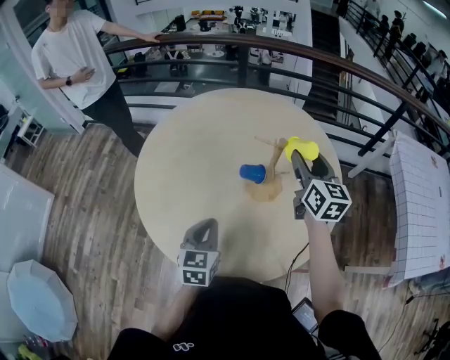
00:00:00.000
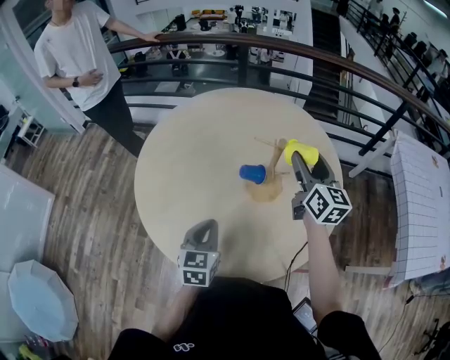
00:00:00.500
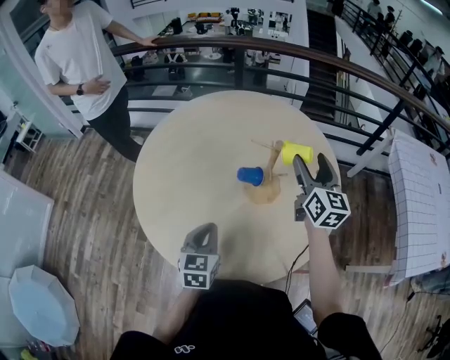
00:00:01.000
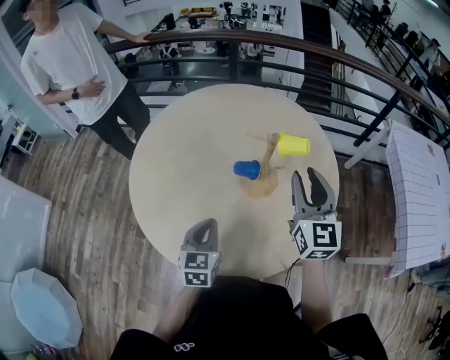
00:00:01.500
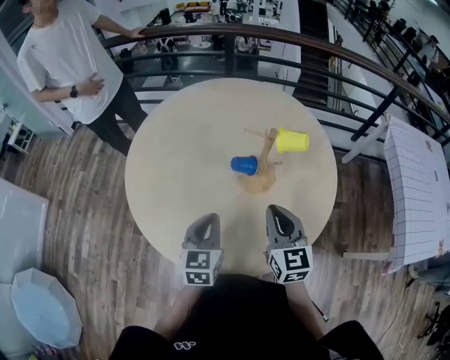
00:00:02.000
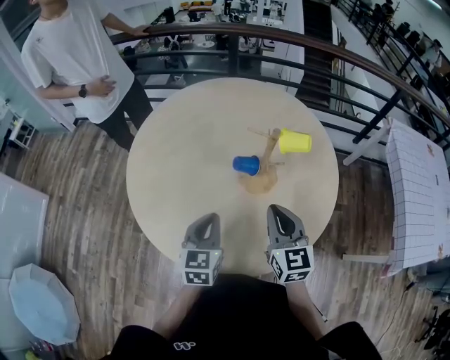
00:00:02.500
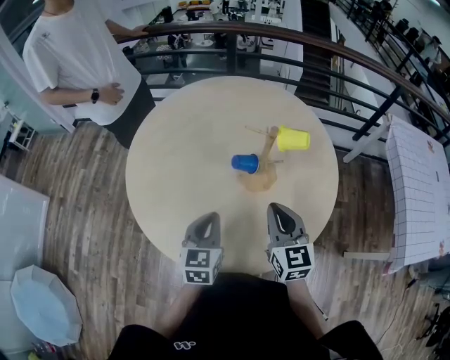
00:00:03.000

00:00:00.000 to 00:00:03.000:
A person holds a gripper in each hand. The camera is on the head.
00:00:00.000 to 00:00:01.500: The right gripper is displaced backward by approximately 10 cm.
00:00:01.500 to 00:00:03.000: The right gripper heads downward, backward and to the left, covering about 15 cm, and closes its fingers.

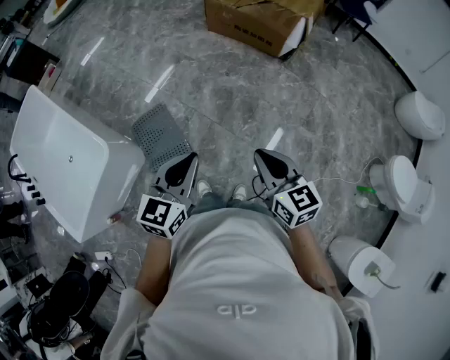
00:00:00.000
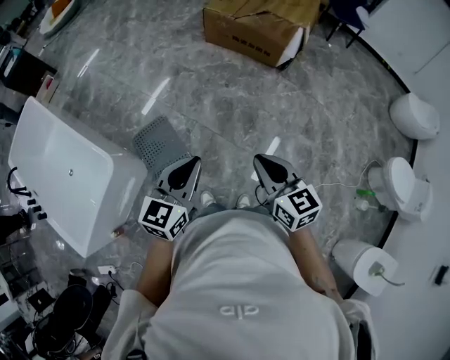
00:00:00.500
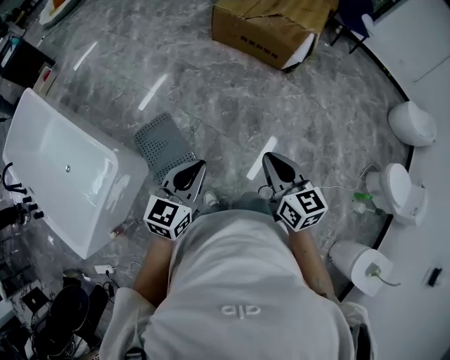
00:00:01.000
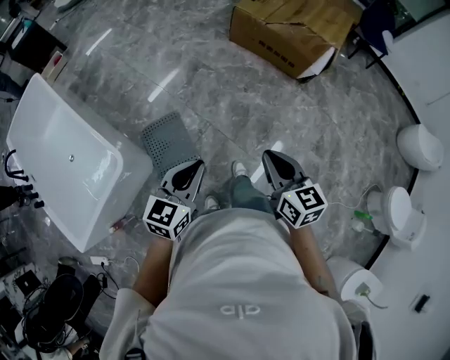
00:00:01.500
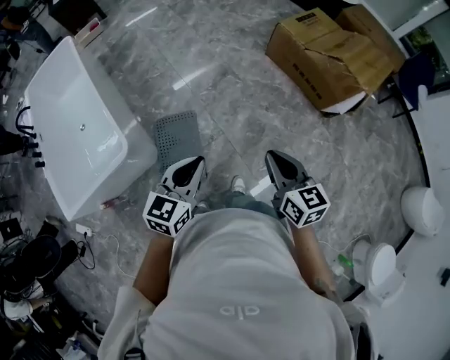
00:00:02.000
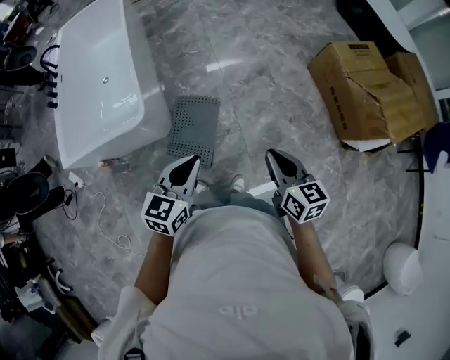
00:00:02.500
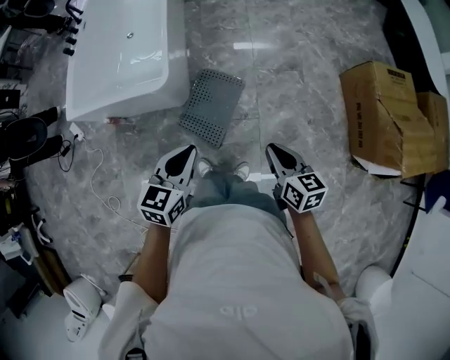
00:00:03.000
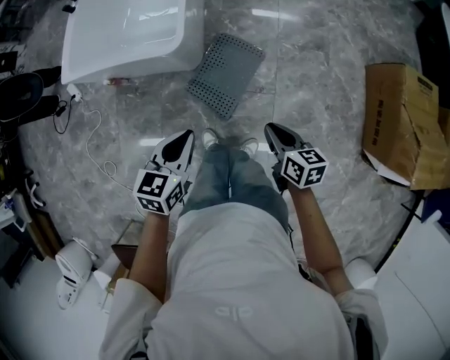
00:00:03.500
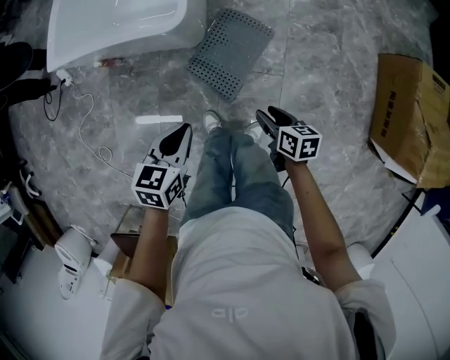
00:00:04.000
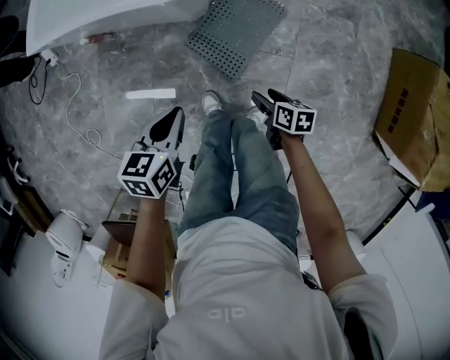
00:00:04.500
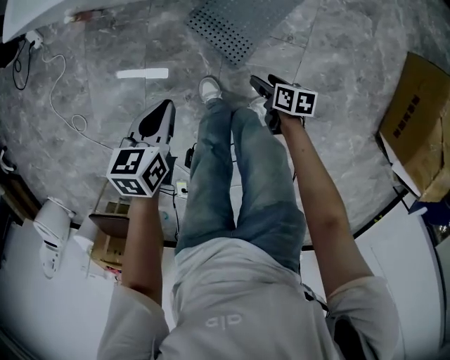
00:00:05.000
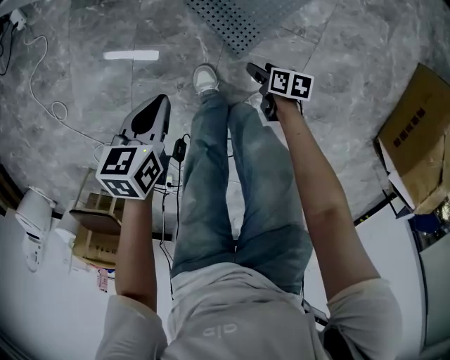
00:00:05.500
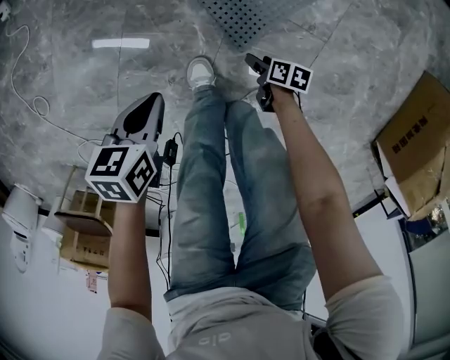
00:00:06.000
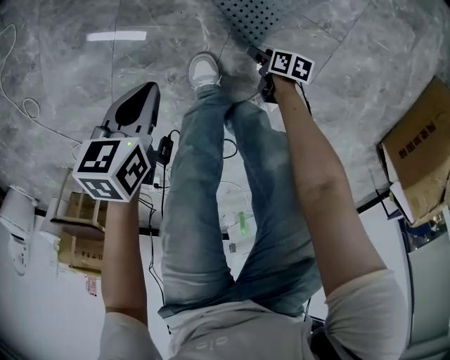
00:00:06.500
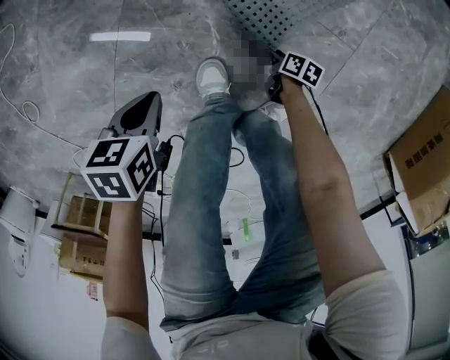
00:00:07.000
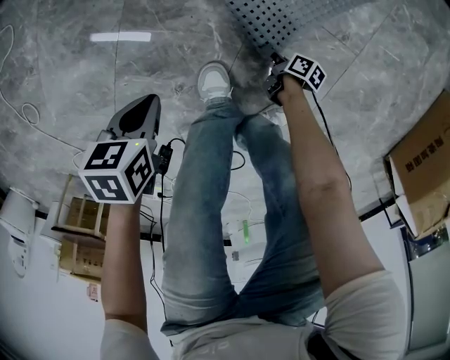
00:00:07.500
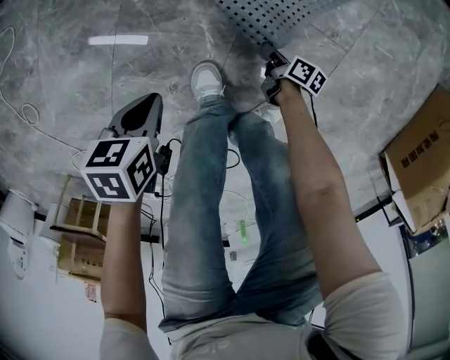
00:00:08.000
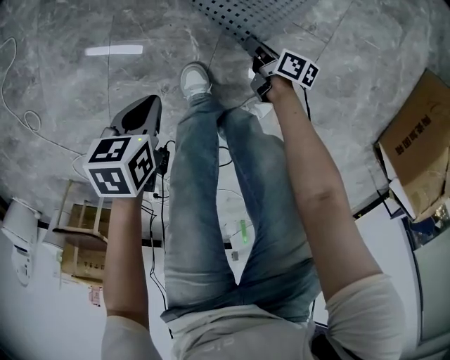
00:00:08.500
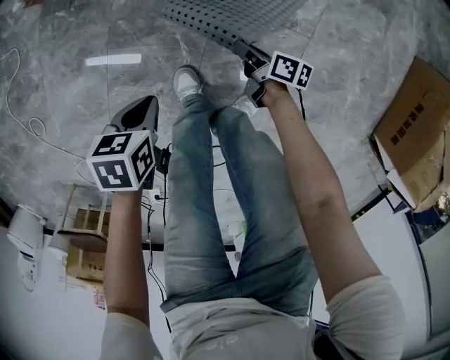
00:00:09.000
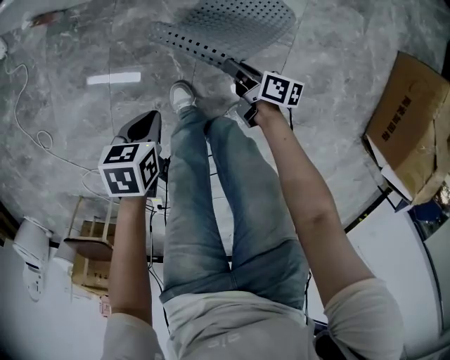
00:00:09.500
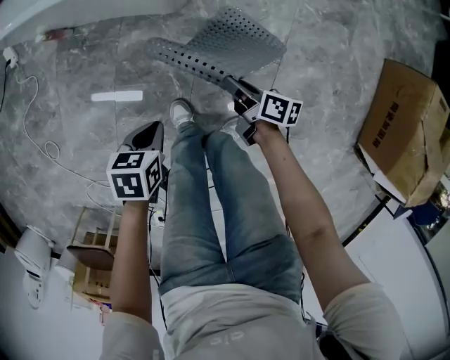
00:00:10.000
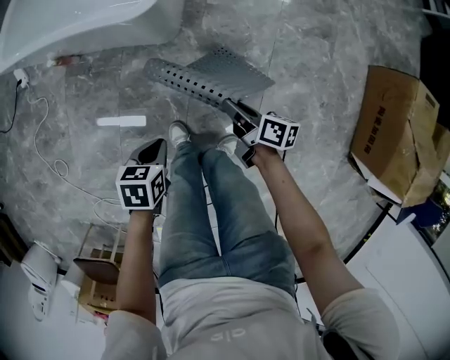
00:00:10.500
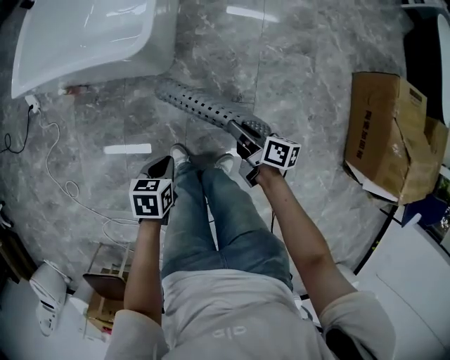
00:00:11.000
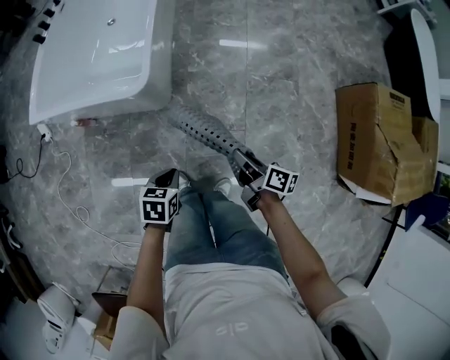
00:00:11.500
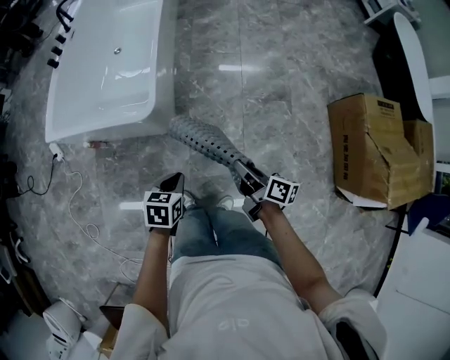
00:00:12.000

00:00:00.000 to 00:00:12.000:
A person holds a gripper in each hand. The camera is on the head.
00:00:00.000 to 00:00:02.000: The two grippers go some 30 cm forward and to the left.
00:00:02.000 to 00:00:04.000: The left gripper changes place by some 40 cm, and rotates roughly 50 degrees; the right gripper is displaced downward by about 40 cm, changes its angle by roughly 50 degrees, and opens.
00:00:04.000 to 00:00:06.000: Both grippers travel together downward, about 50 cm. The left gripper swivels about 30 degrees; the right gripper rotates approximately 20 degrees.
00:00:06.000 to 00:00:08.000: Both grippers travel together downward, about 10 cm. The right gripper rotates about 20 degrees, and closes.
00:00:08.000 to 00:00:10.000: The left gripper goes about 25 cm upward and to the right. The right gripper moves upward, approximately 35 cm.
00:00:10.000 to 00:00:12.000: The left gripper moves upward and to the right, some 35 cm, and swivels about 20 degrees. Meanwhile the right gripper shifts roughly 40 cm upward, and changes its angle by roughly 20 degrees.

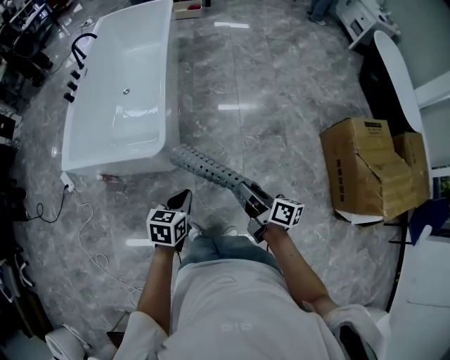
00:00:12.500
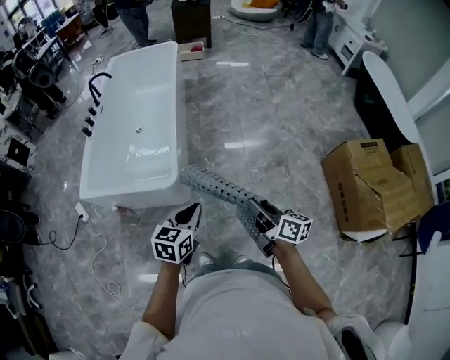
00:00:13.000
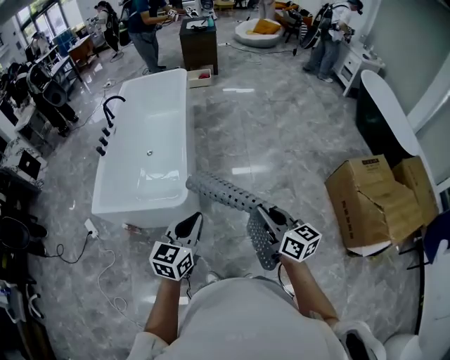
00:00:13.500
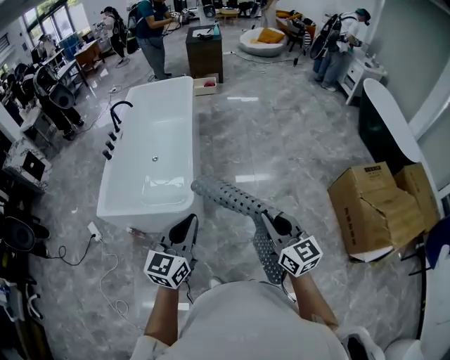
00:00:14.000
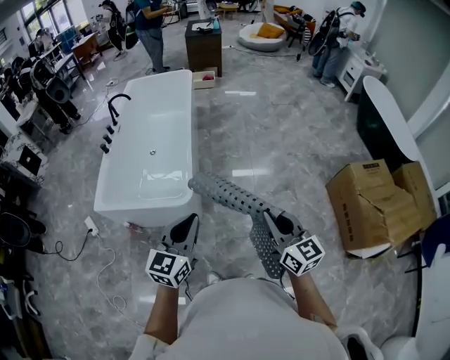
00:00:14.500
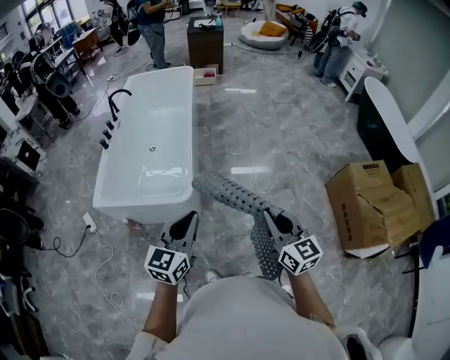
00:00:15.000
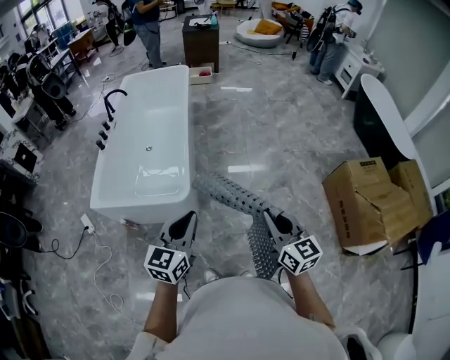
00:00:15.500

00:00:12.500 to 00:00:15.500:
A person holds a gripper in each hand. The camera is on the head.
00:00:12.500 to 00:00:14.000: Both grippers travel together upward, some 25 cm. The left gripper points its fingers approximately 40 degrees further upward, while the right gripper twists about 50 degrees counterclockwise, seen from behind.
00:00:14.000 to 00:00:15.500: The grippers stay close to where they were, moving slightly.

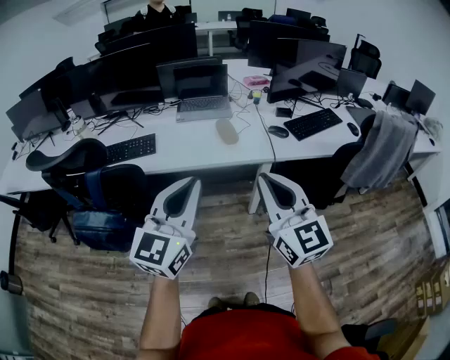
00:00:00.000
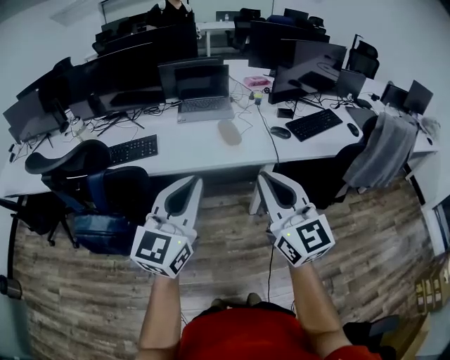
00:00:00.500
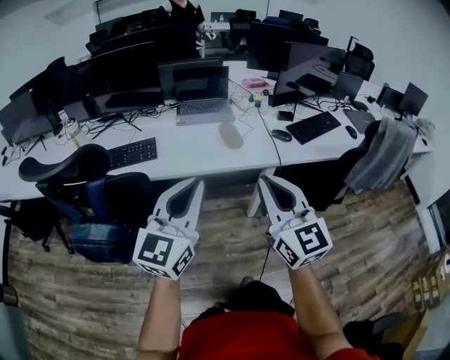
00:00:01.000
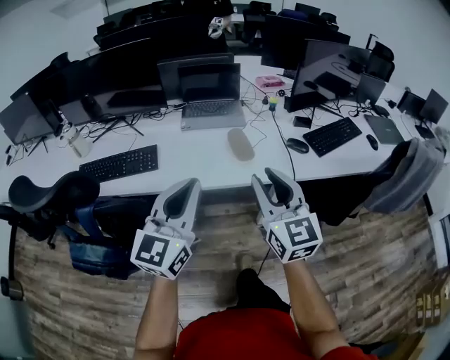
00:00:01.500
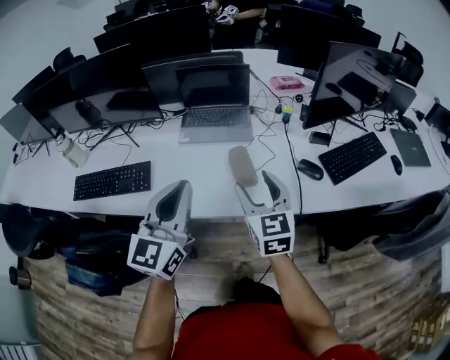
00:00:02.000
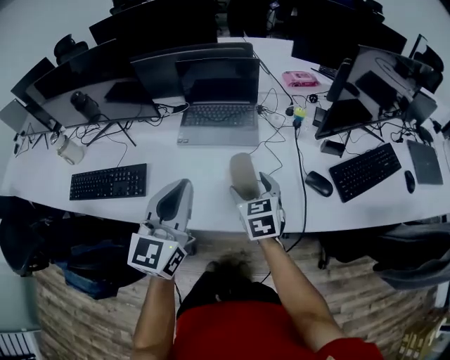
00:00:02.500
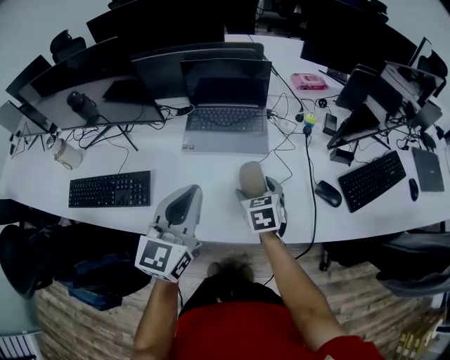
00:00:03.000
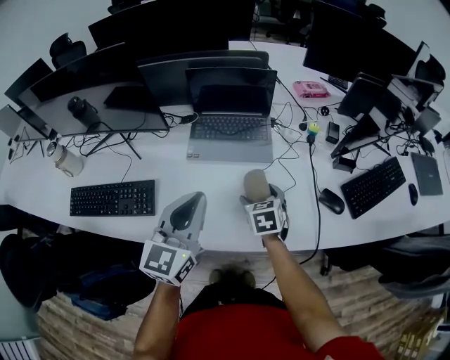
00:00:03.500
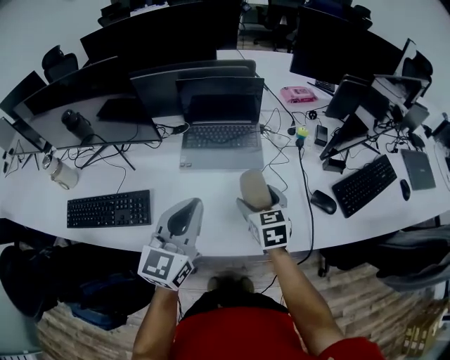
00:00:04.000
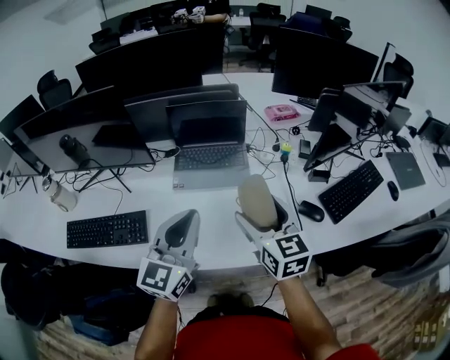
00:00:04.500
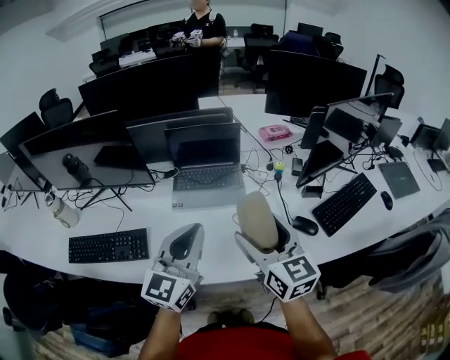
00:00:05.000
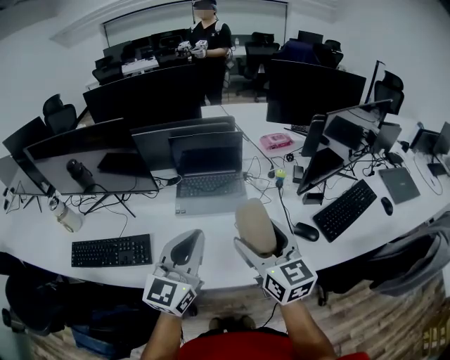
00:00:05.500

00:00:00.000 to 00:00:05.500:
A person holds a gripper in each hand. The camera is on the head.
00:00:00.000 to 00:00:02.000: The left gripper is displaced forward by roughly 30 cm; the right gripper travels forward and downward by about 40 cm, turns by approximately 20 degrees, and opens up.
00:00:02.000 to 00:00:03.500: The left gripper shifts roughly 15 cm forward and downward. The right gripper travels downward and forward by about 25 cm, and angles its fingers downward, by approximately 30 degrees.
00:00:03.500 to 00:00:05.500: The left gripper is displaced upward by about 10 cm. The right gripper is displaced upward by roughly 25 cm, and points its fingers some 40 degrees further upward.

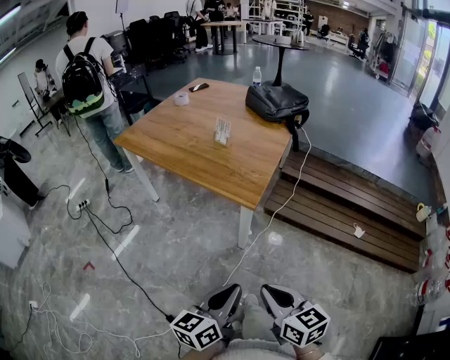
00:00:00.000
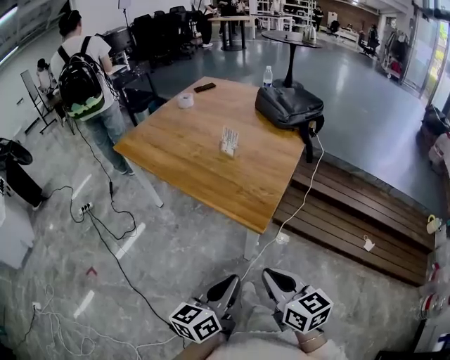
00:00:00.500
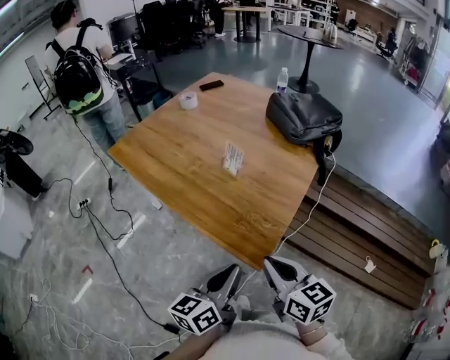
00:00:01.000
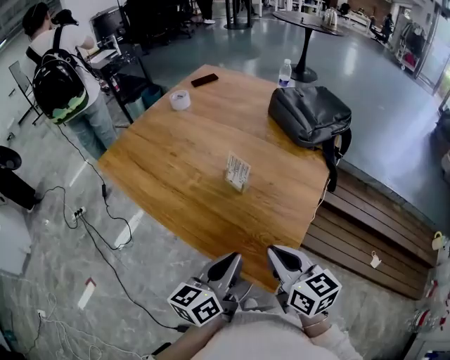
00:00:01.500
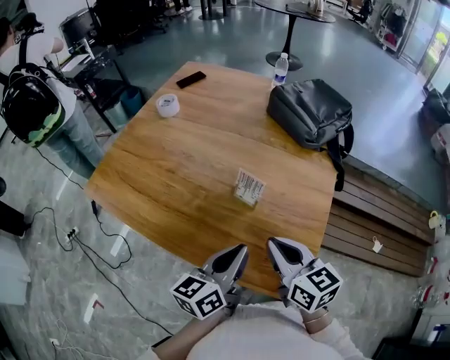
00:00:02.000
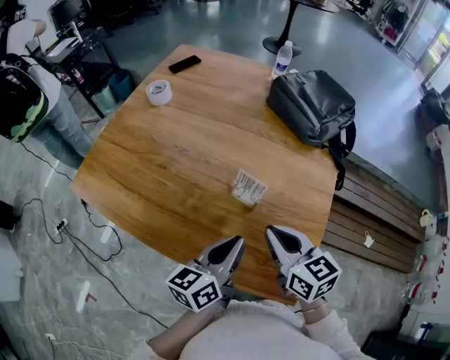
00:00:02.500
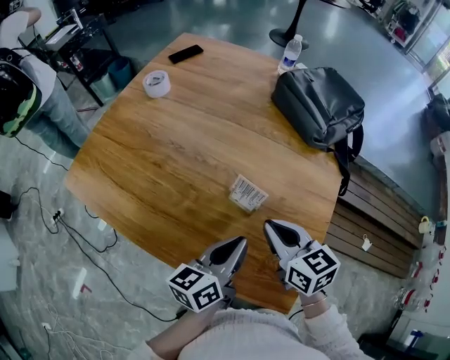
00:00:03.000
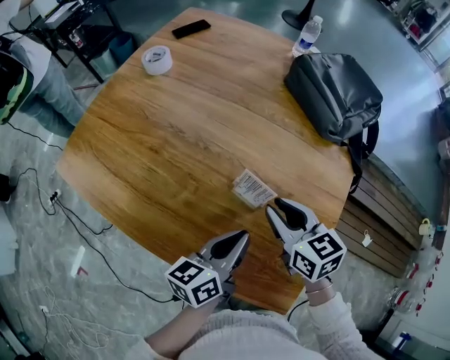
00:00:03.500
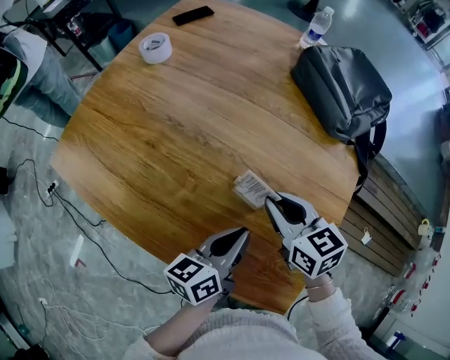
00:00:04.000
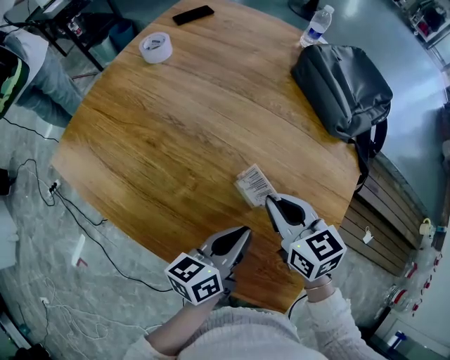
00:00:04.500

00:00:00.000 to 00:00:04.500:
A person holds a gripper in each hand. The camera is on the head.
00:00:00.000 to 00:00:02.000: The pair of grippers is taken forward, about 60 cm.
00:00:02.000 to 00:00:04.500: Both grippers travel together forward and downward, about 15 cm.
